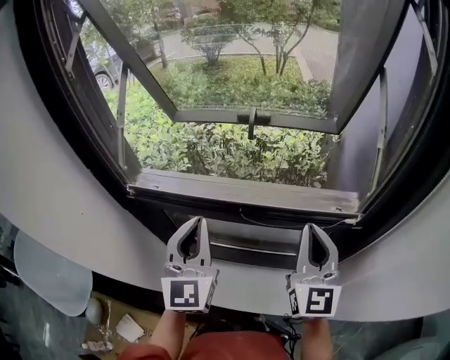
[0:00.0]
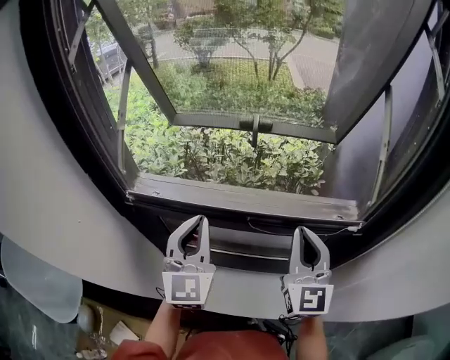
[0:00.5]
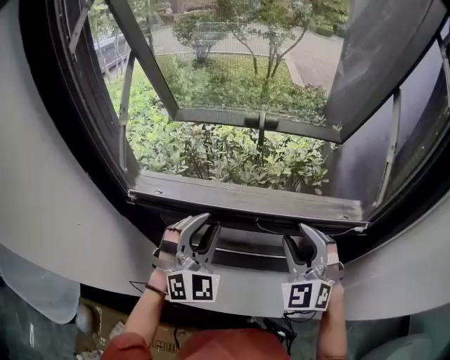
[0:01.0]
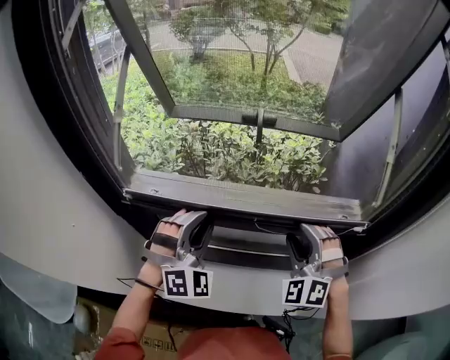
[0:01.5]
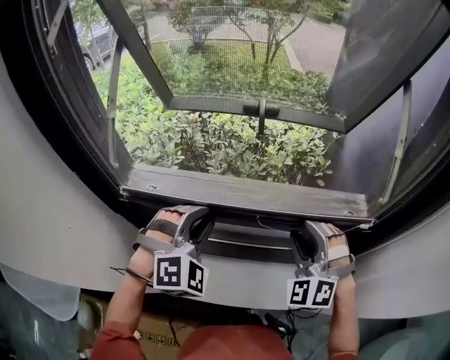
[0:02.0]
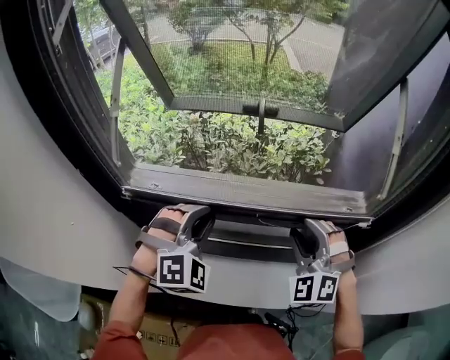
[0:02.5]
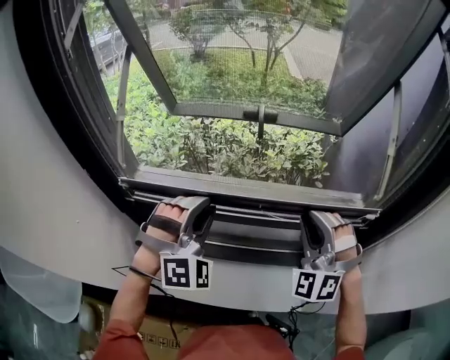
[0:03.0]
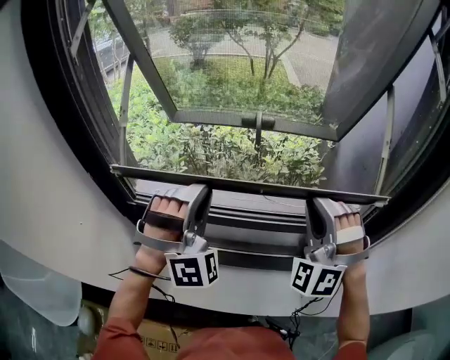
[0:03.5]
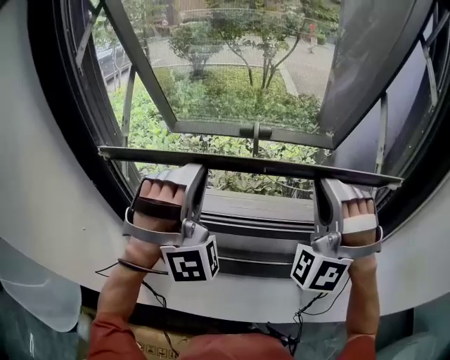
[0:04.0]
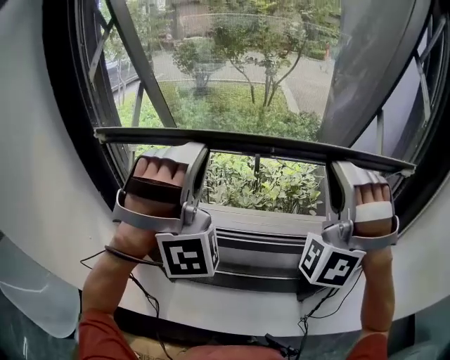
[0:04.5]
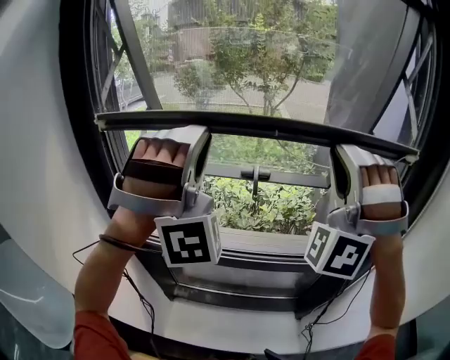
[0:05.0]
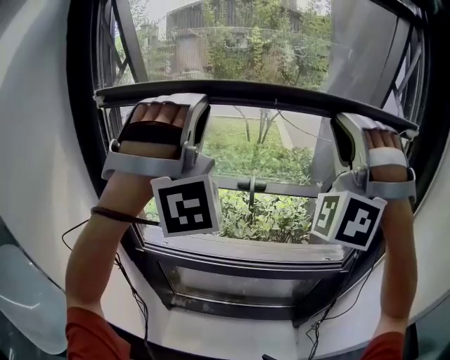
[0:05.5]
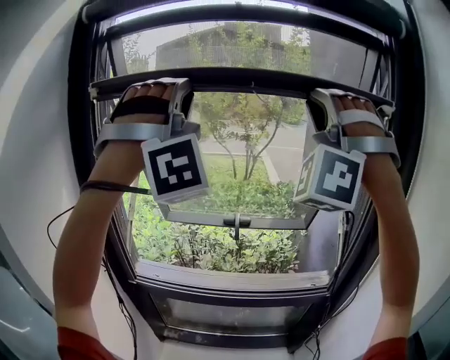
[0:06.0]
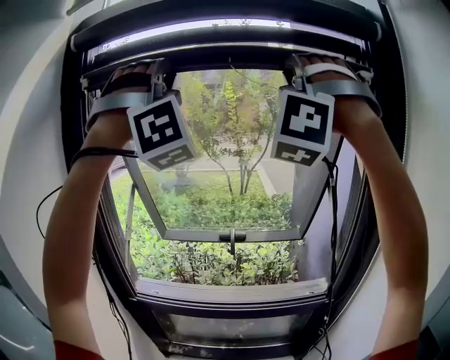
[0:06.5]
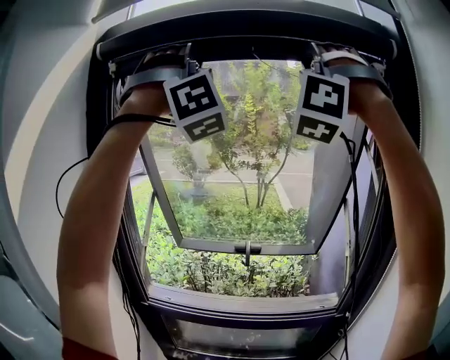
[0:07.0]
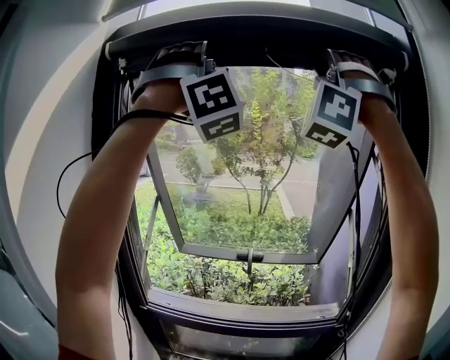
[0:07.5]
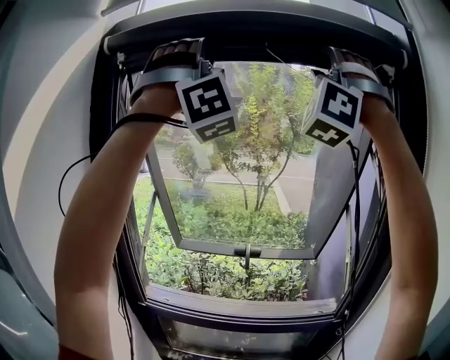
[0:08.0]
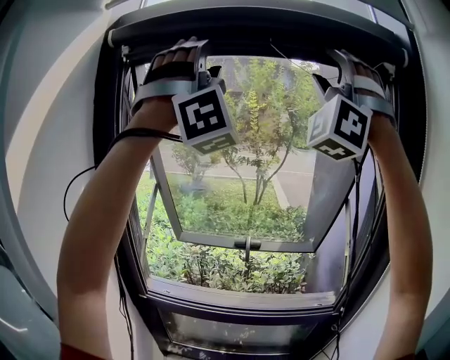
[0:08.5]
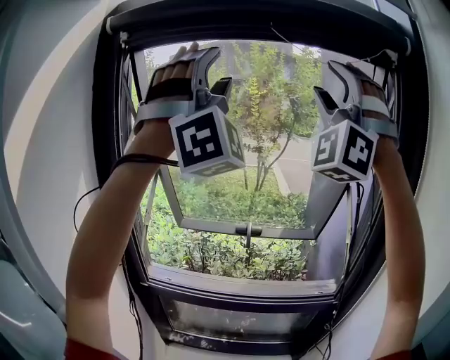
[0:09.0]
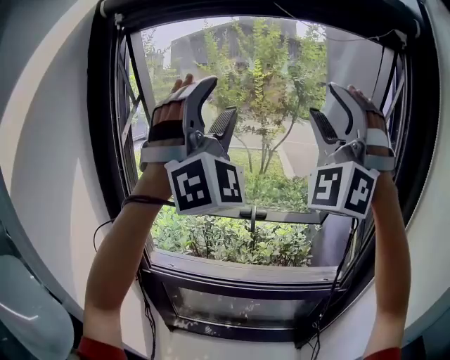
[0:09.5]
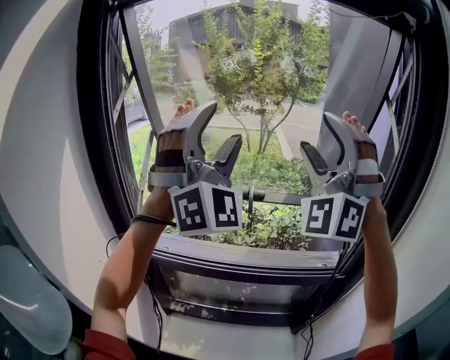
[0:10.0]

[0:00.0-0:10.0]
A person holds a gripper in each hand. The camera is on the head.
0:00.0 to 0:02.0: The left gripper shifts about 10 cm downward and forward, and rolls clockwise, seen from behind, by approximately 60 degrees. Meanwhile the right gripper travels downward and to the left by approximately 10 cm, rolls counterclockwise, seen from behind, by roughly 60 degrees, and opens.
0:02.0 to 0:04.0: The two grippers go some 20 cm upward. The left gripper tips its fingers upward by approximately 40 degrees. The right gripper changes its angle by roughly 40 degrees, and closes its fingers.
0:04.0 to 0:06.0: Both grippers travel together upward, about 35 cm. The left gripper changes its angle by approximately 20 degrees. The right gripper swivels some 20 degrees.
0:06.0 to 0:08.0: Both grippers move upward, approximately 15 cm.
0:08.0 to 0:10.0: The two grippers go roughly 30 cm downward. The left gripper rotates roughly 40 degrees, and opens its fingers. Meanwhile the right gripper rotates some 30 degrees, and opens its fingers.

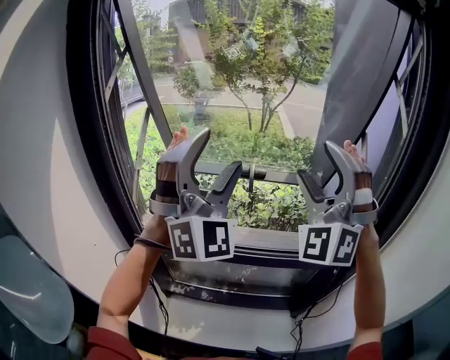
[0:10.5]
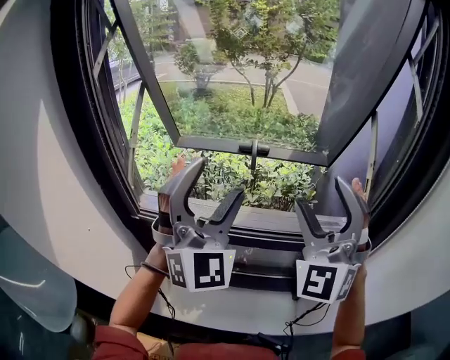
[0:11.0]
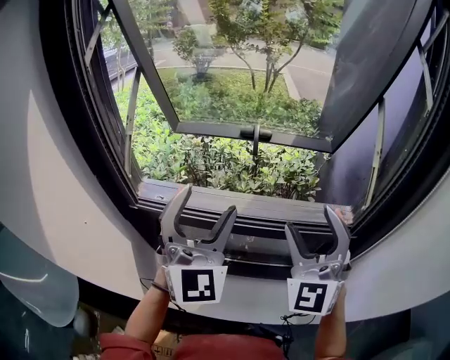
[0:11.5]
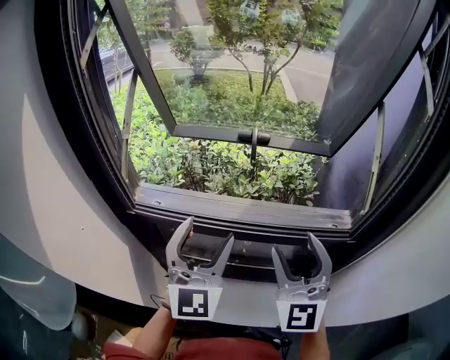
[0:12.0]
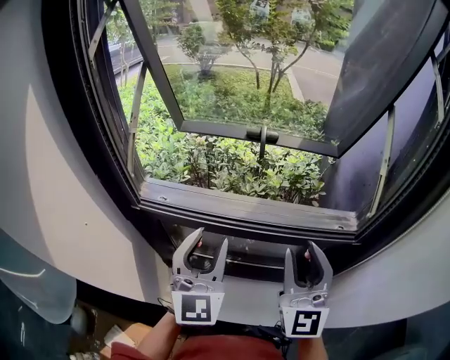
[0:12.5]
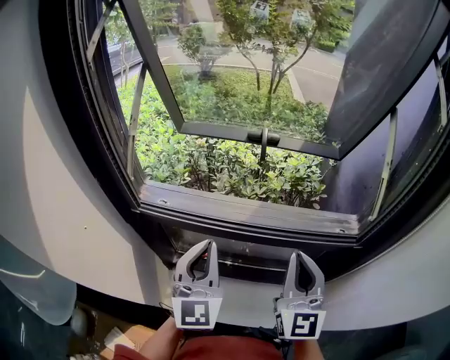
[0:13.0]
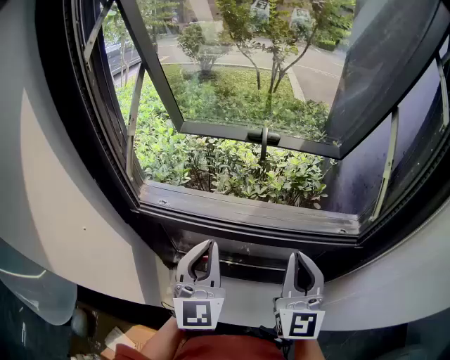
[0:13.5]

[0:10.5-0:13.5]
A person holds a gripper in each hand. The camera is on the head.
0:10.5 to 0:12.0: The left gripper moves downward, roughly 20 cm, and twists roughly 40 degrees counterclockwise, seen from behind. The right gripper heads downward and backward, covering approximately 20 cm, and rolls clockwise, seen from behind, by about 50 degrees.
0:12.0 to 0:13.5: The left gripper shifts by about 5 cm, and closes its fingers; the right gripper closes.

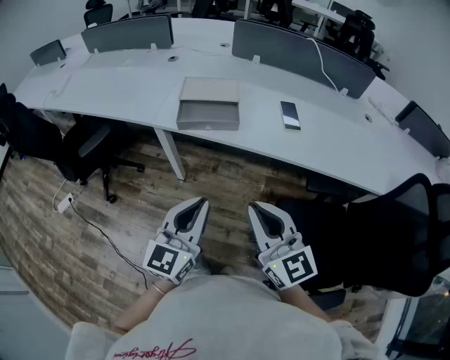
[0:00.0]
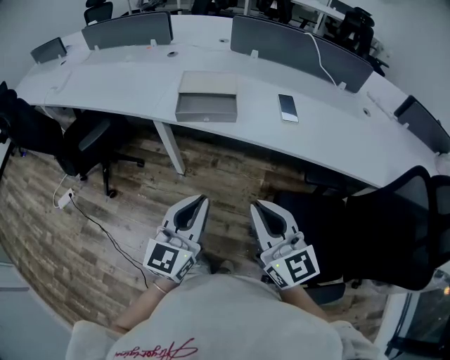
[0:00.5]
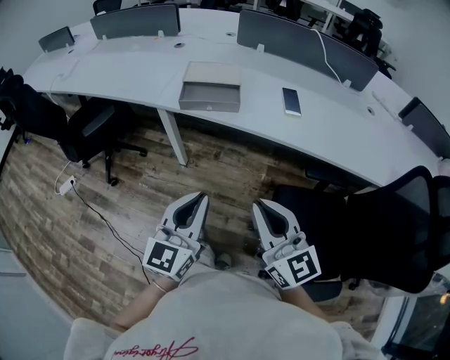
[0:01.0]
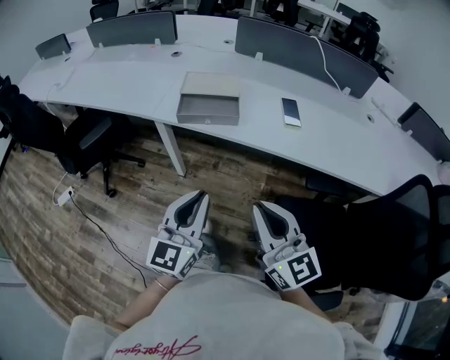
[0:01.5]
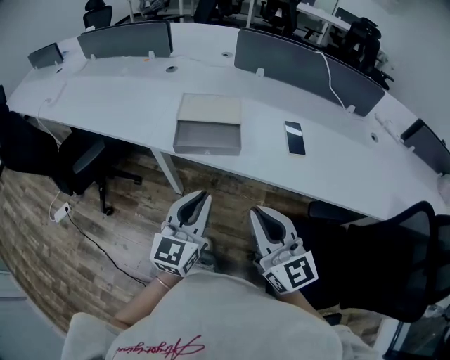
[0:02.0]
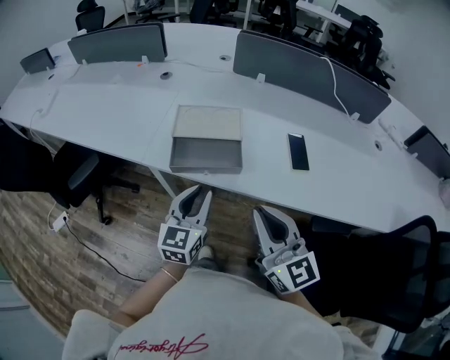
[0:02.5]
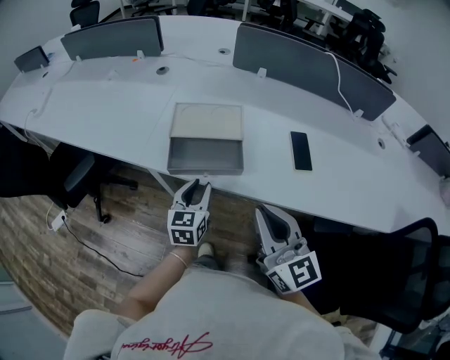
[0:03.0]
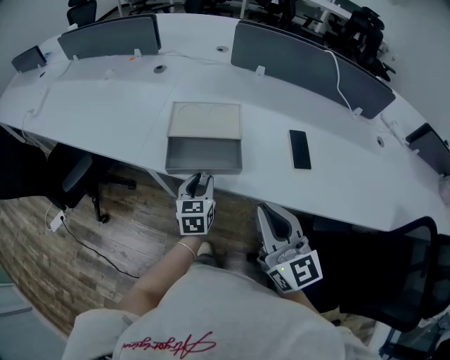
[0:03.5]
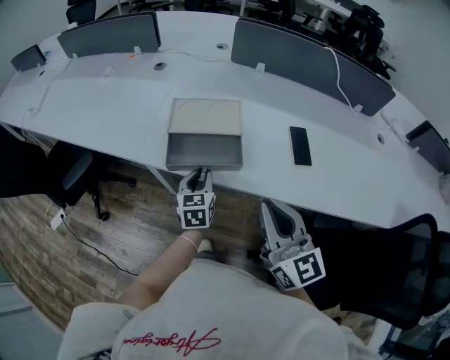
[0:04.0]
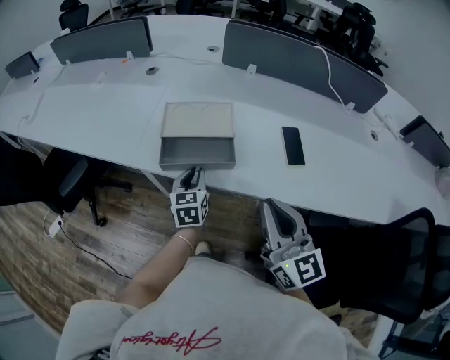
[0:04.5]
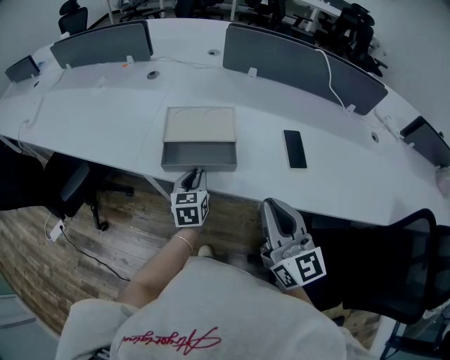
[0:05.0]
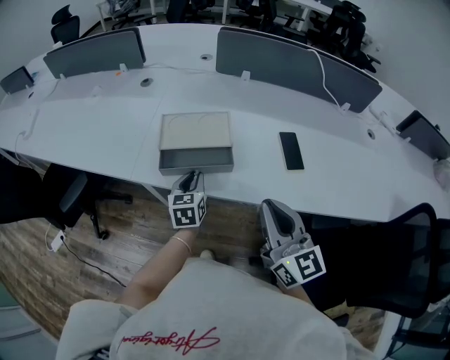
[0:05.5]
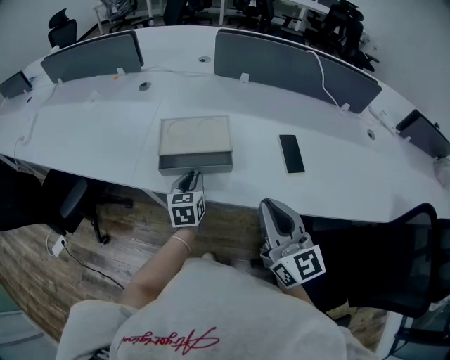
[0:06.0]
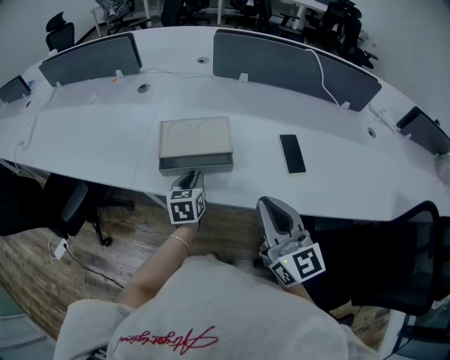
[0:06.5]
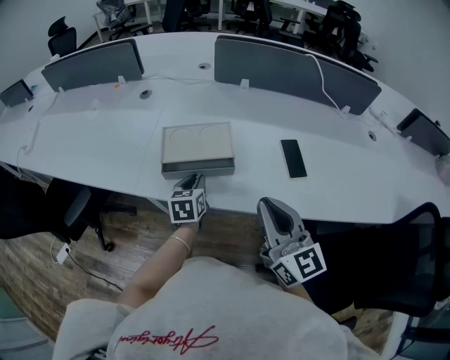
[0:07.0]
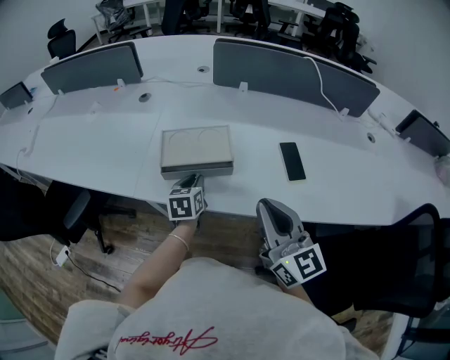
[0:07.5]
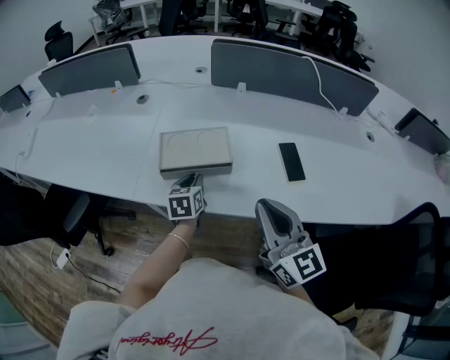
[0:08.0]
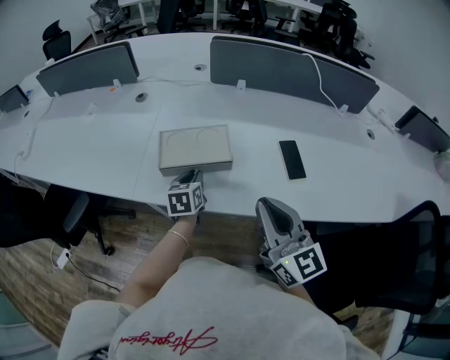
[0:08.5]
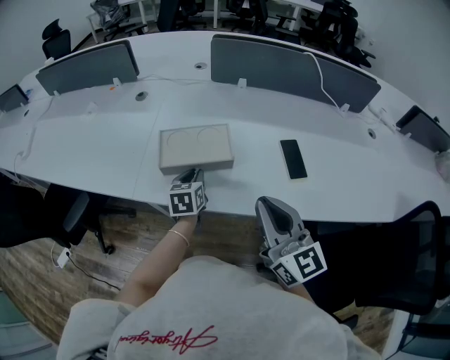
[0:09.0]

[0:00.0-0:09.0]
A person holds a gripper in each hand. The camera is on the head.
0:00.0 to 0:02.0: The grippers both shift forward by approximately 10 cm.
0:02.0 to 0:04.5: The right gripper travels forward by roughly 10 cm; the left gripper shifts approximately 25 cm forward and downward, and turns by roughly 30 degrees.
0:04.5 to 0:07.0: The left gripper is displaced forward by approximately 5 cm. Meanwhile the right gripper moves roughly 5 cm.
0:07.0 to 0:09.0: The grippers move only a little.

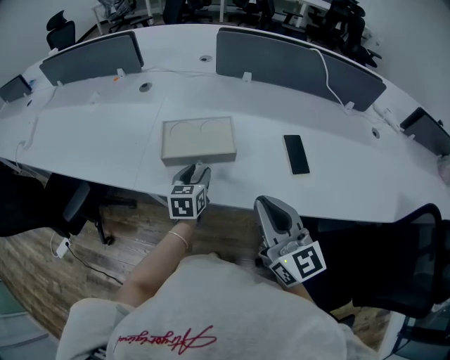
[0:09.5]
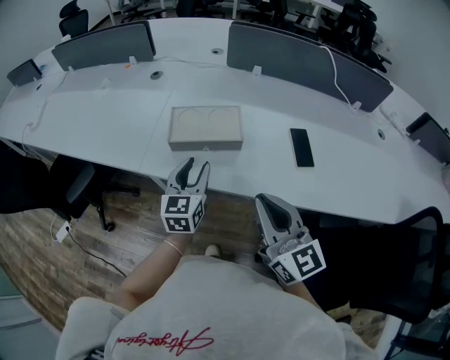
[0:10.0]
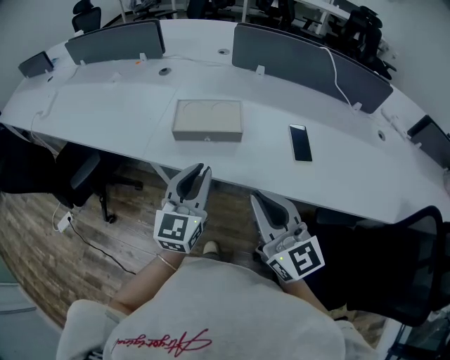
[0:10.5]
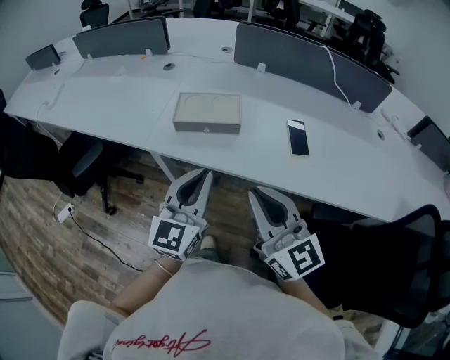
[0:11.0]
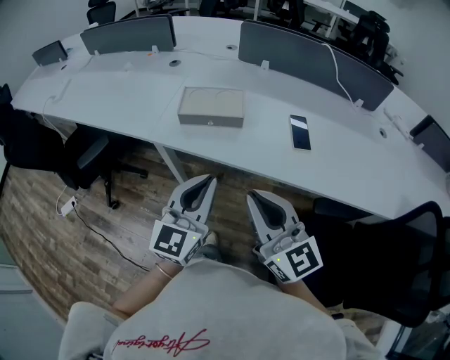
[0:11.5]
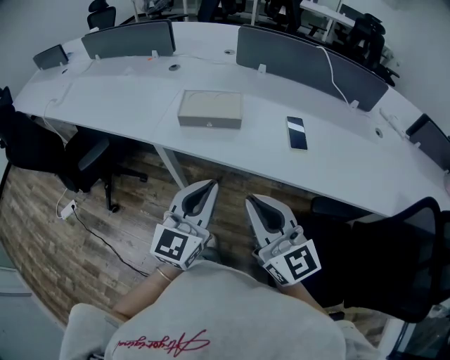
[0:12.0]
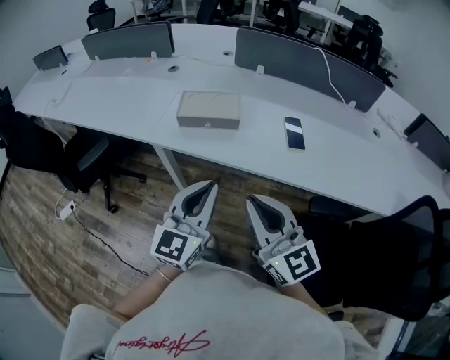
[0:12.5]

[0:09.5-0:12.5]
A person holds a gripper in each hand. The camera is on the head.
0:09.5 to 0:11.0: The right gripper shifts about 10 cm backward; the left gripper is displaced backward and upward by approximately 25 cm, angles its fingers upward, by roughly 30 degrees, and closes up.
0:11.0 to 0:12.5: Both grippers travel together backward, some 5 cm.

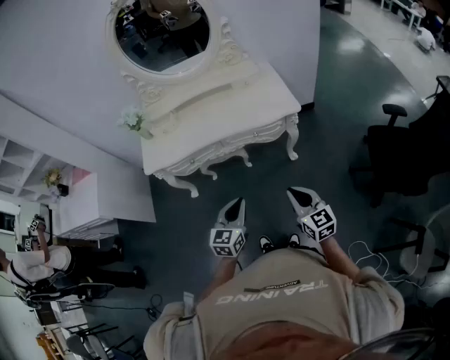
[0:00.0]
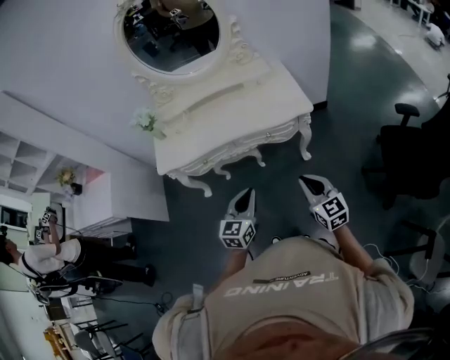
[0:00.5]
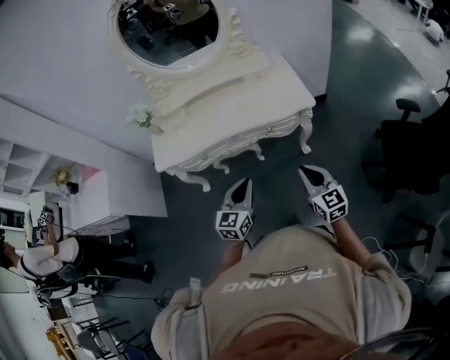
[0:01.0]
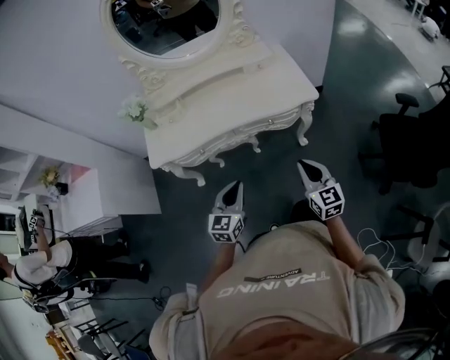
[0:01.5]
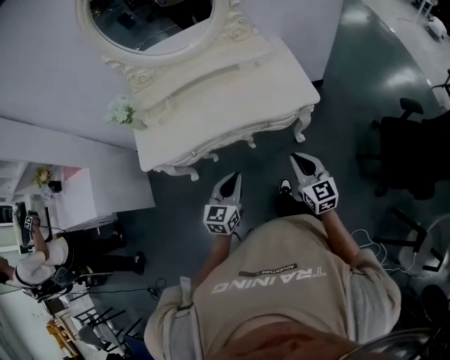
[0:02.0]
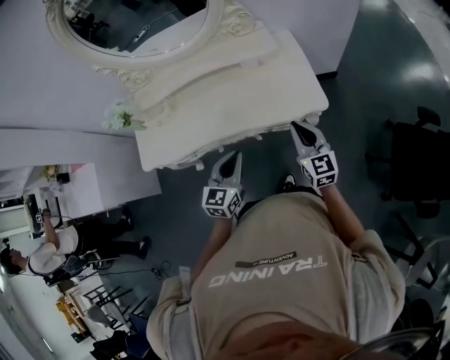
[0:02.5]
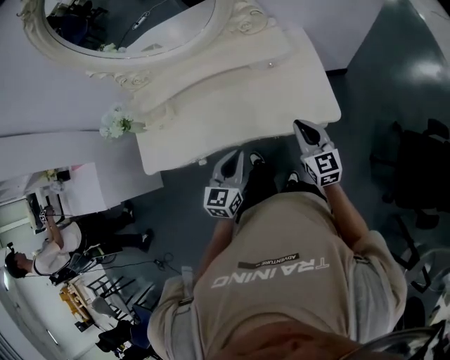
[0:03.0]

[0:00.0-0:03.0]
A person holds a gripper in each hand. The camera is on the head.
0:00.0 to 0:01.5: The right gripper travels forward by some 15 cm, while the left gripper goes some 15 cm forward and to the left.
0:01.5 to 0:03.0: Both grippers travel together forward, some 35 cm.
